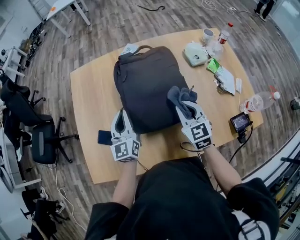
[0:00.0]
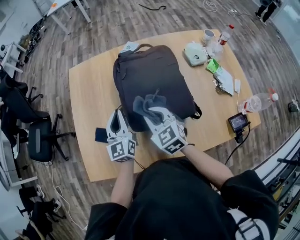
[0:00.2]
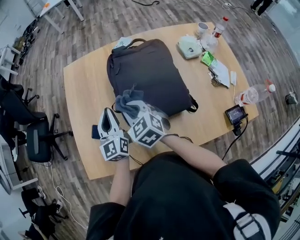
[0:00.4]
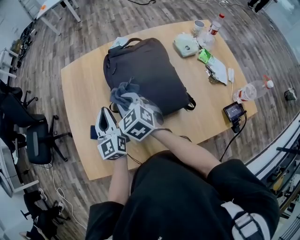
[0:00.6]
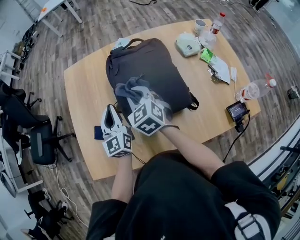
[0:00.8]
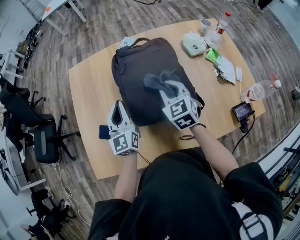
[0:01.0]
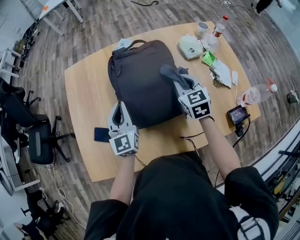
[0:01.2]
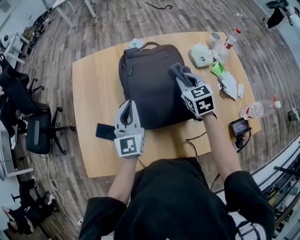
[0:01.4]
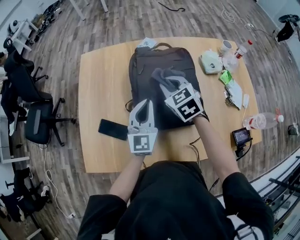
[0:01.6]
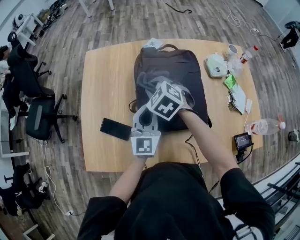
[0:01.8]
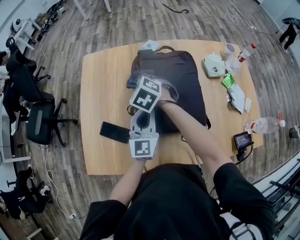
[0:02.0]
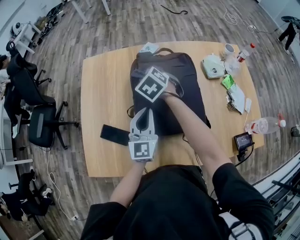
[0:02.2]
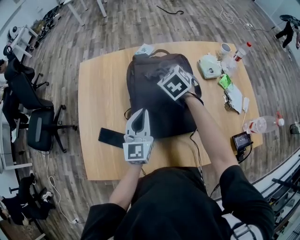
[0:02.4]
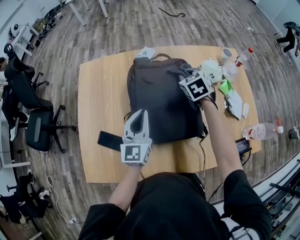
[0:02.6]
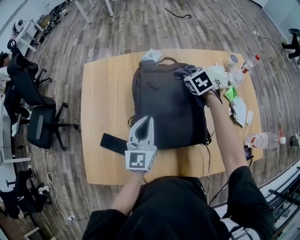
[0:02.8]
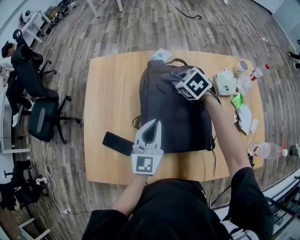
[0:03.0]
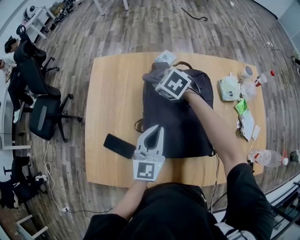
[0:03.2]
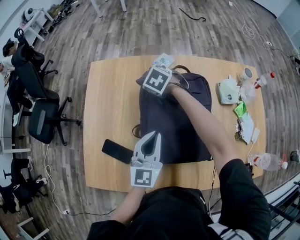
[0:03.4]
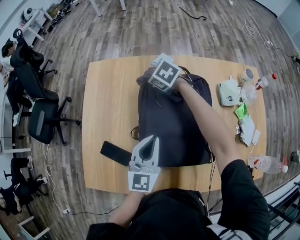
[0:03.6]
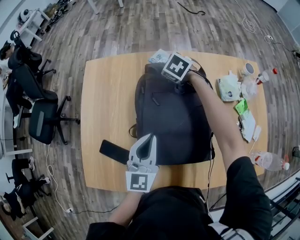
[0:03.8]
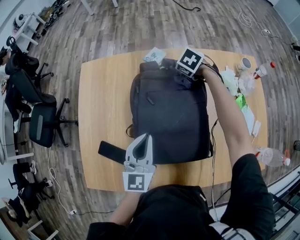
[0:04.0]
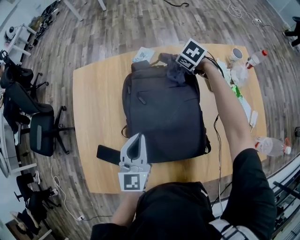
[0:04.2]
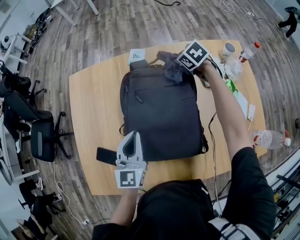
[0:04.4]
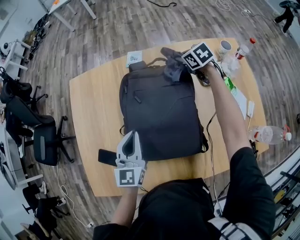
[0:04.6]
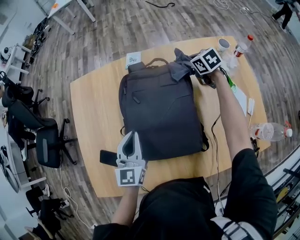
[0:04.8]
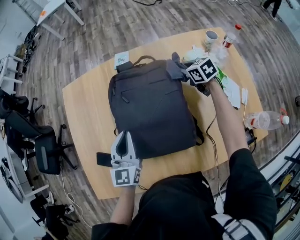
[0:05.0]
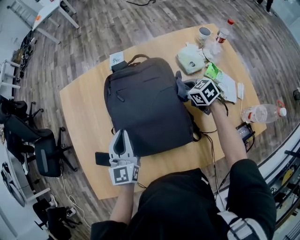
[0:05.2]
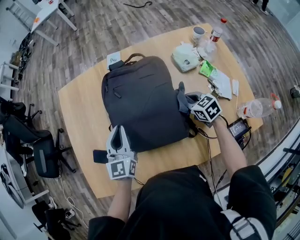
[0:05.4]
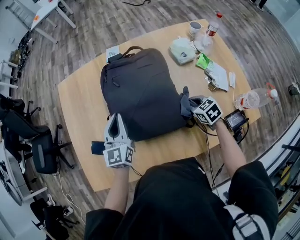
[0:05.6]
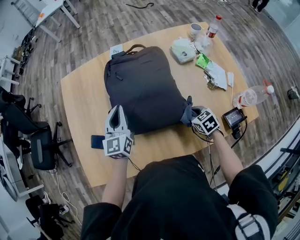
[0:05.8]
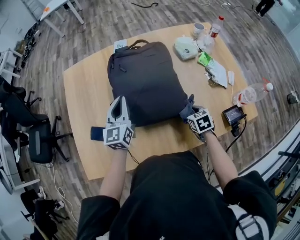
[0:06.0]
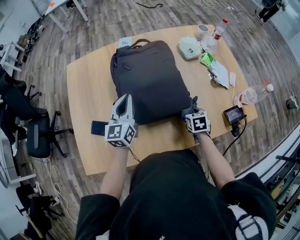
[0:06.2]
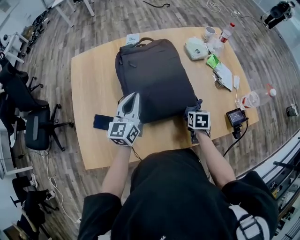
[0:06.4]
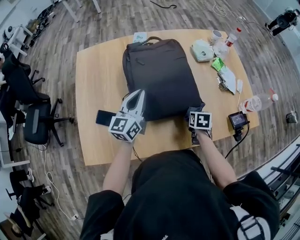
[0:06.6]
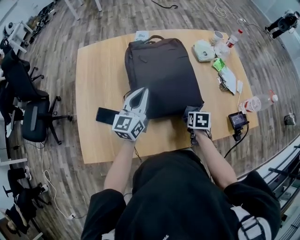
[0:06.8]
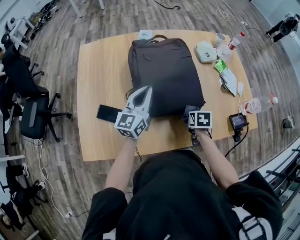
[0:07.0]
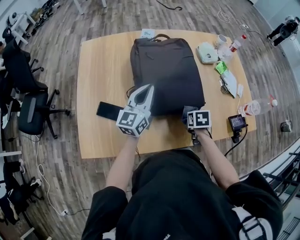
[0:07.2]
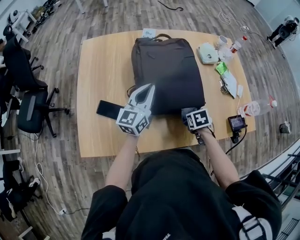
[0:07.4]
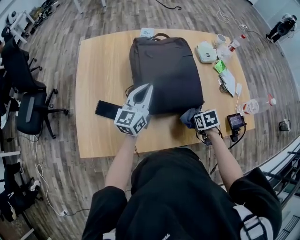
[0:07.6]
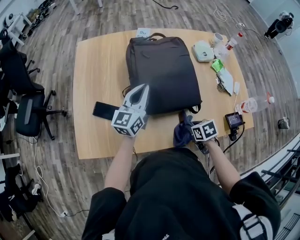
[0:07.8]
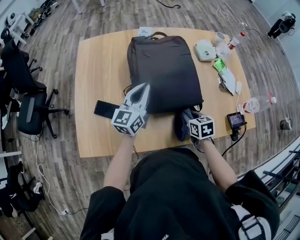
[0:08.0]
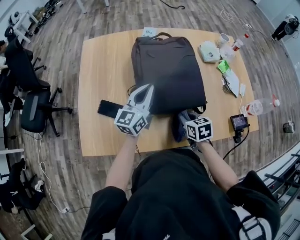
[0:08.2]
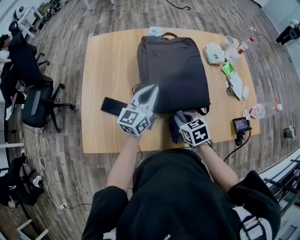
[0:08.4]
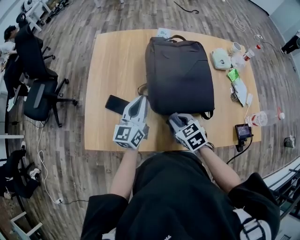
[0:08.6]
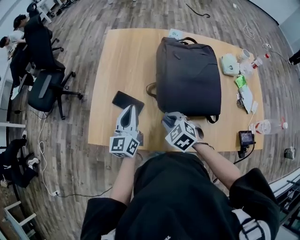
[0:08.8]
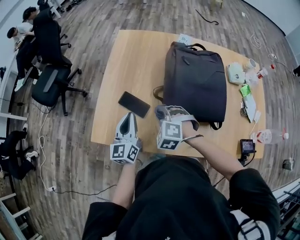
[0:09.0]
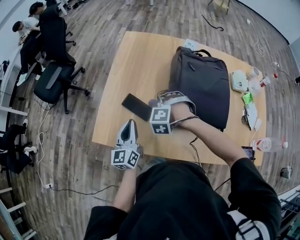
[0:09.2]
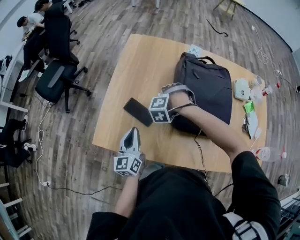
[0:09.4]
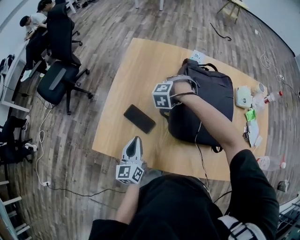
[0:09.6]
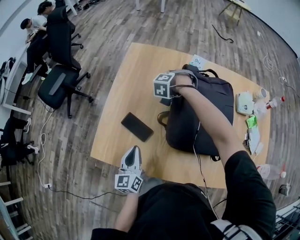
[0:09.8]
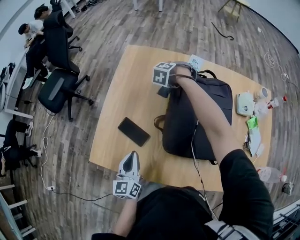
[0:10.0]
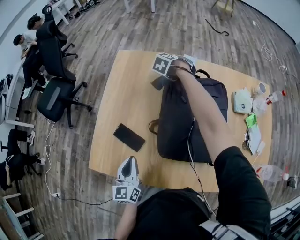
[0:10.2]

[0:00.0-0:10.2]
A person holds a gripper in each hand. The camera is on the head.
0:00.0 to 0:01.4: The right gripper is displaced forward by about 10 cm, and reaches approximately 20 cm to the left, then returns.
0:01.4 to 0:03.0: The right gripper swings left and right, roughly 25 cm each way, with 2 reversals, and rotates roughly 40 degrees.
0:03.0 to 0:04.4: The right gripper is displaced to the right and forward by approximately 20 cm.
0:04.4 to 0:05.8: The right gripper goes some 40 cm backward.
0:05.8 to 0:07.2: The right gripper shifts by about 10 cm, and turns by approximately 30 degrees; the left gripper ends up about 5 cm from where it was.
0:07.2 to 0:08.8: The right gripper moves about 25 cm, and twists some 60 degrees counterclockwise, seen from behind; the left gripper shifts by about 20 cm, and swivels some 30 degrees.
0:08.8 to 0:10.2: The right gripper changes place by approximately 50 cm, and turns by approximately 30 degrees.

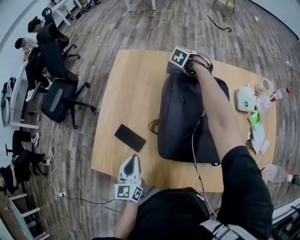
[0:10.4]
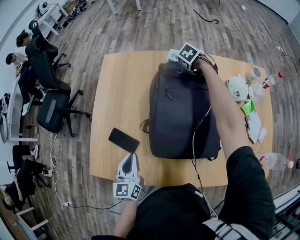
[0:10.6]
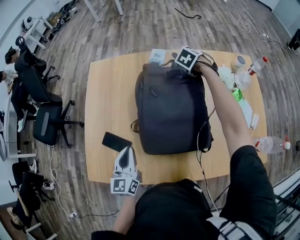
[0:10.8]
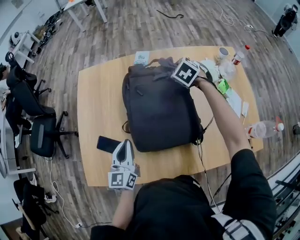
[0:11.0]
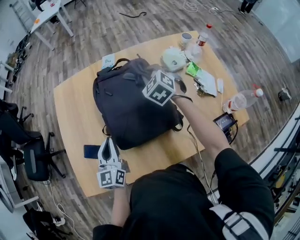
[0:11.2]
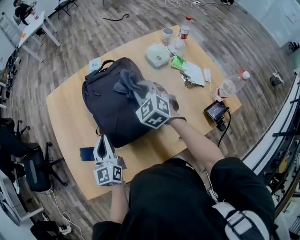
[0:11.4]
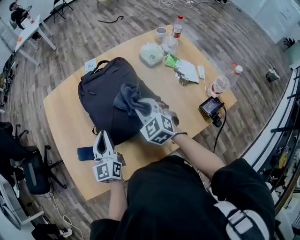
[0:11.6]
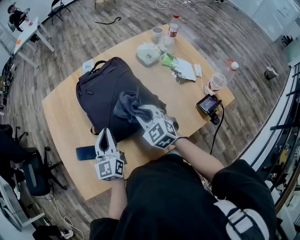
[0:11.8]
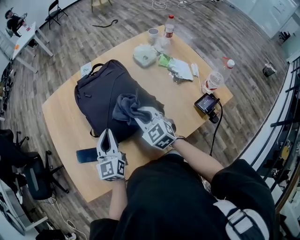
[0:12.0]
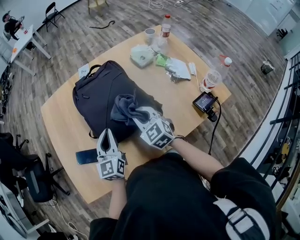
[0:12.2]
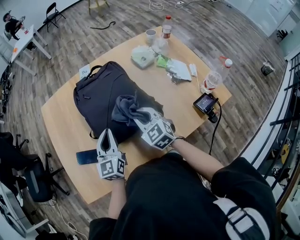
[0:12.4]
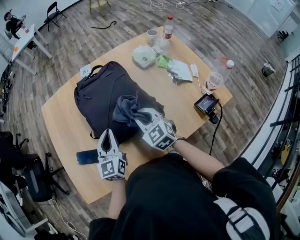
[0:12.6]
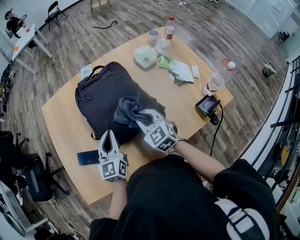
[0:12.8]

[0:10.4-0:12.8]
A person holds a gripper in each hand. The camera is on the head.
0:10.4 to 0:11.6: The left gripper heads to the right, forward and upward, covering roughly 15 cm, and turns by about 30 degrees. Meanwhile the right gripper moves backward, about 40 cm, and points its fingers some 40 degrees further upward.
0:11.6 to 0:12.8: There are only small adjustments of the grippers.

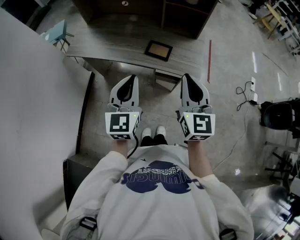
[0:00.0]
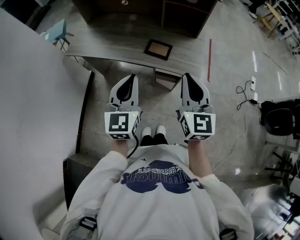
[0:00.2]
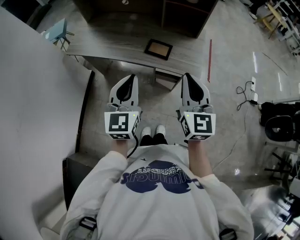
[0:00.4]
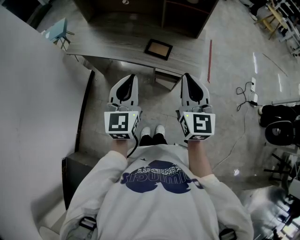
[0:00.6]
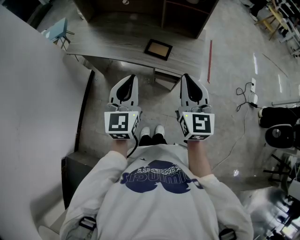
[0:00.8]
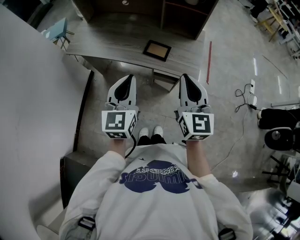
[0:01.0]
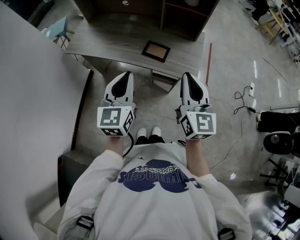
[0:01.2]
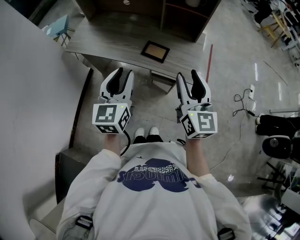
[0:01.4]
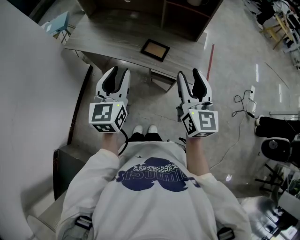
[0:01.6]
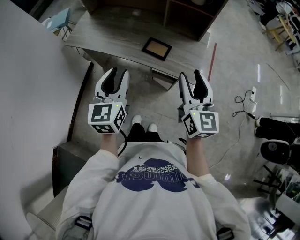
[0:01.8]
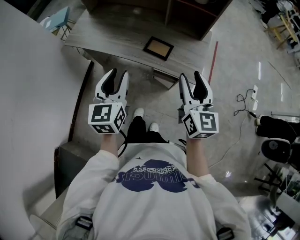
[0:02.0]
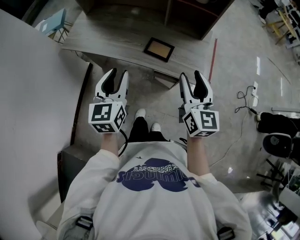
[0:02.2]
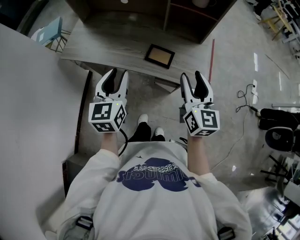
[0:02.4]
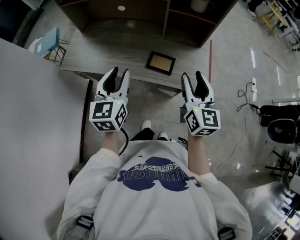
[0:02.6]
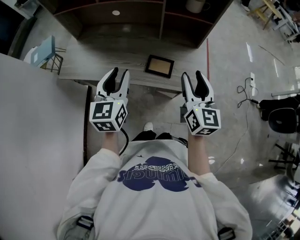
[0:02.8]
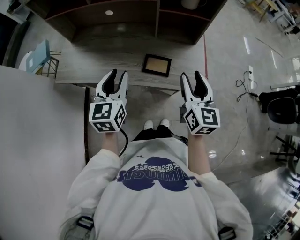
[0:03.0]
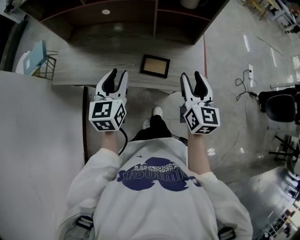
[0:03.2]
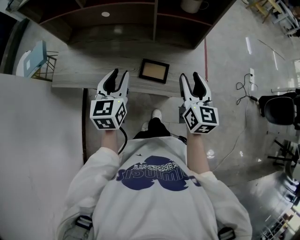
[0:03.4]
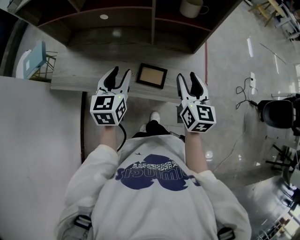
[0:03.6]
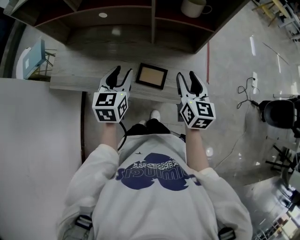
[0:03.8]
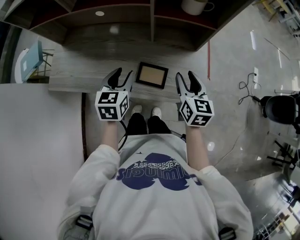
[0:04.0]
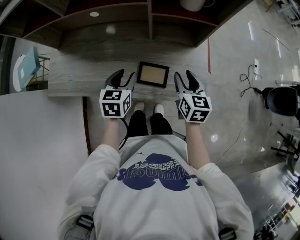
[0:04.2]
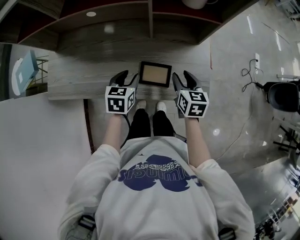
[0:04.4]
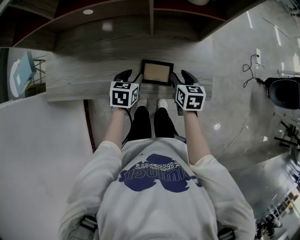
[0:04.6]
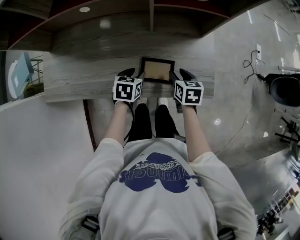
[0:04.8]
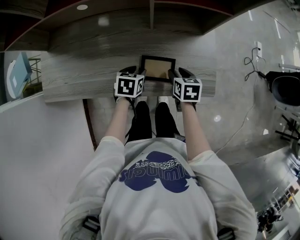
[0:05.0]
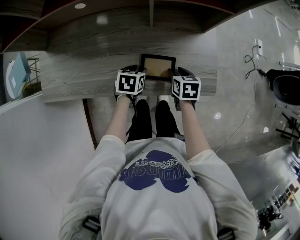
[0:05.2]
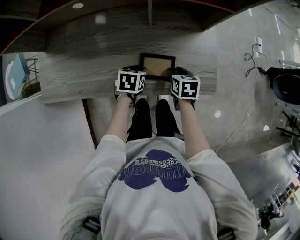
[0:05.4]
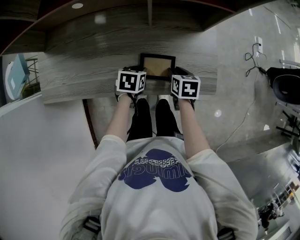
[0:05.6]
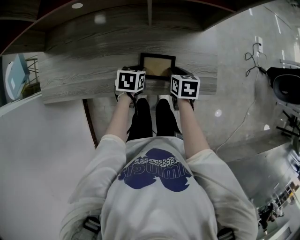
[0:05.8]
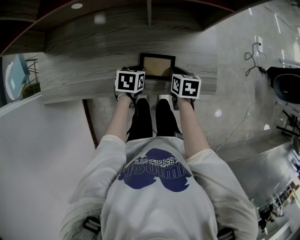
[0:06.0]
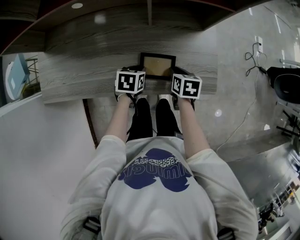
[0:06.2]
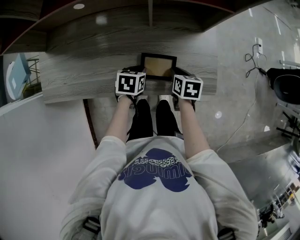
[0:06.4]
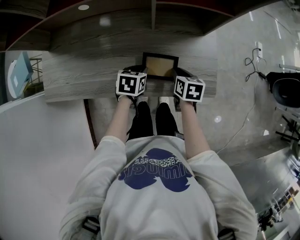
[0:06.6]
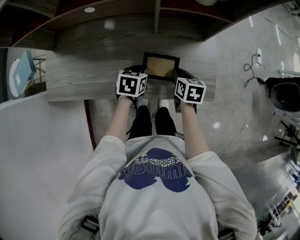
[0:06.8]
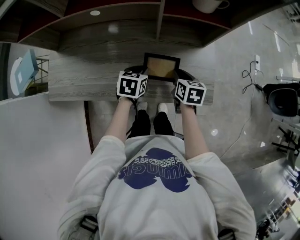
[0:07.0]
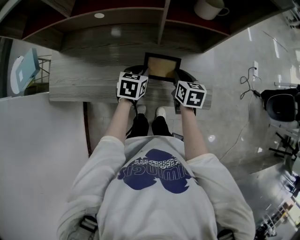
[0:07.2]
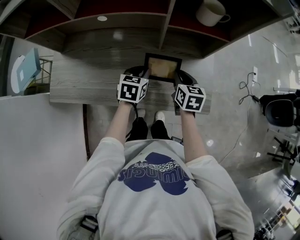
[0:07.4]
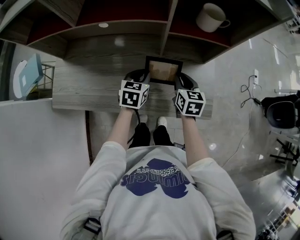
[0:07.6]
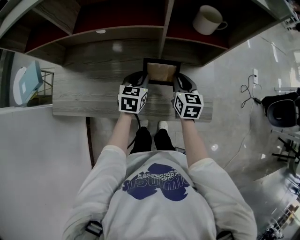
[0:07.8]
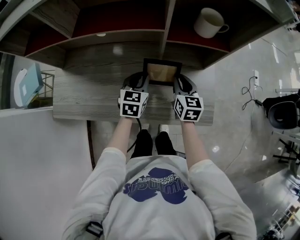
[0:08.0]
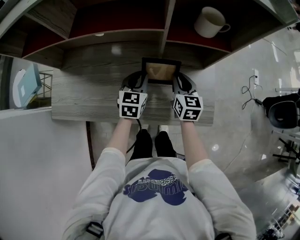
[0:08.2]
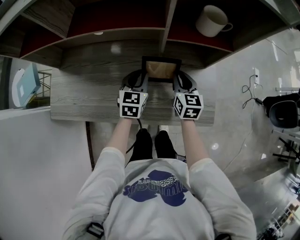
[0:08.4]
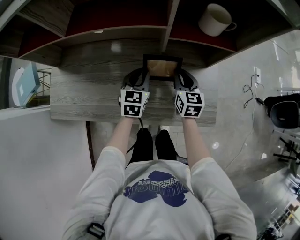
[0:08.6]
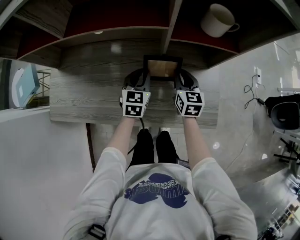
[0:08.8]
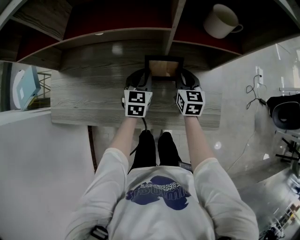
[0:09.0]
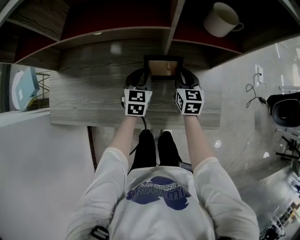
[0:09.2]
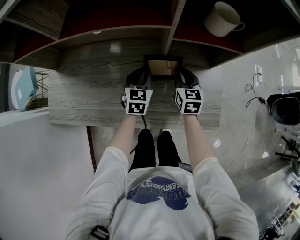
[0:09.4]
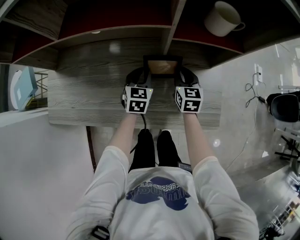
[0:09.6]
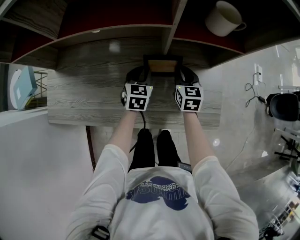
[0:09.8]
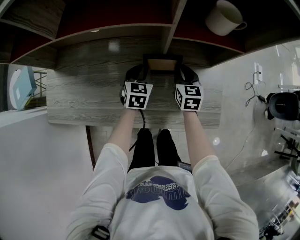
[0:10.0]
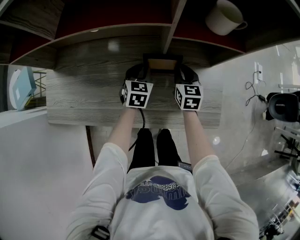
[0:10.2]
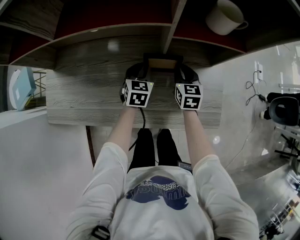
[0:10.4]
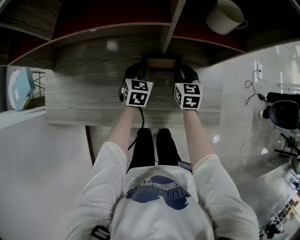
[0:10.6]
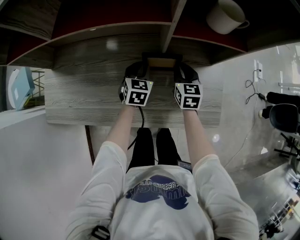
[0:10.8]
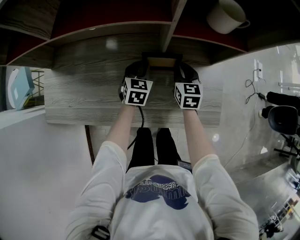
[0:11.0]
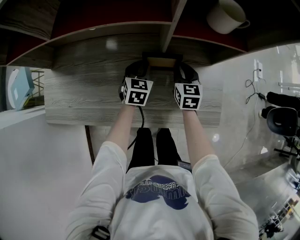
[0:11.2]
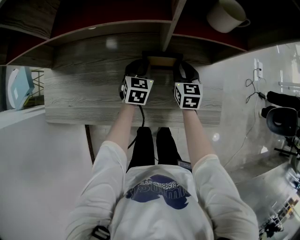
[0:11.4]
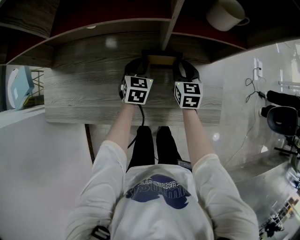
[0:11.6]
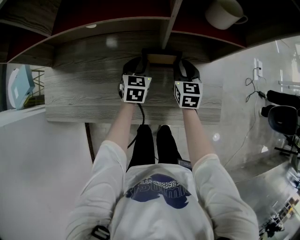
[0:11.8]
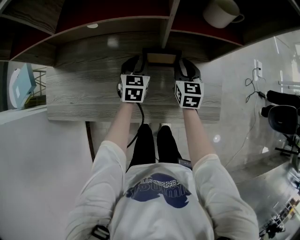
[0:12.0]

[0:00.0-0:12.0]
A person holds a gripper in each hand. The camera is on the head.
0:00.0 to 0:01.6: The right gripper moves to the right, roughly 5 cm, and opens, while the left gripper opens up.
0:01.6 to 0:03.0: Both grippers travel together forward, roughly 15 cm.
0:03.0 to 0:04.4: Both grippers travel together downward and forward, roughly 25 cm. The left gripper rotates approximately 30 degrees, while the right gripper changes its angle by some 30 degrees.
0:04.4 to 0:06.0: Both grippers move downward, about 10 cm. The left gripper swivels roughly 20 degrees. The right gripper turns by about 20 degrees, and closes up.
0:06.0 to 0:07.6: Both grippers move upward and forward, approximately 15 cm. The left gripper rotates approximately 30 degrees. Meanwhile the right gripper changes its angle by roughly 30 degrees.
0:07.6 to 0:09.0: Both grippers move forward, approximately 5 cm.
0:09.0 to 0:10.4: The left gripper shifts by approximately 5 cm.
0:10.4 to 0:12.0: There are only small adjustments of the grippers.
